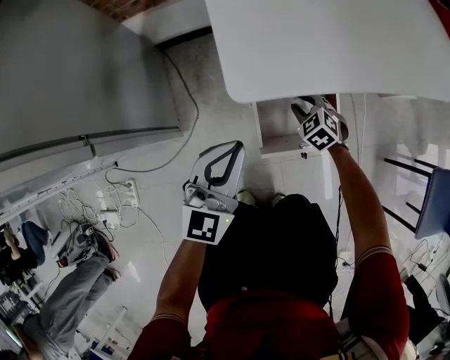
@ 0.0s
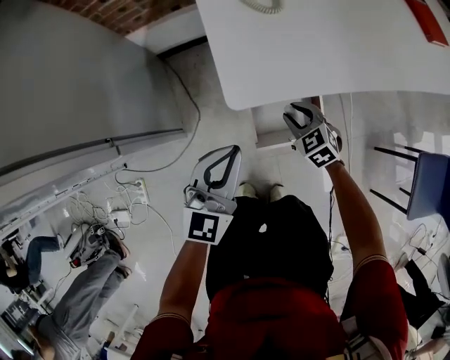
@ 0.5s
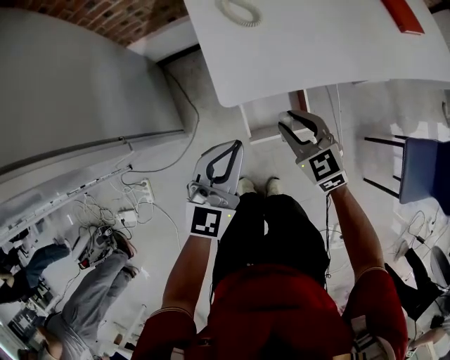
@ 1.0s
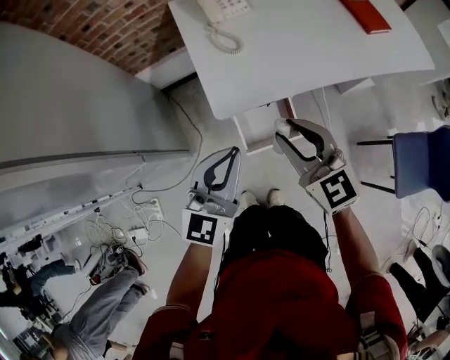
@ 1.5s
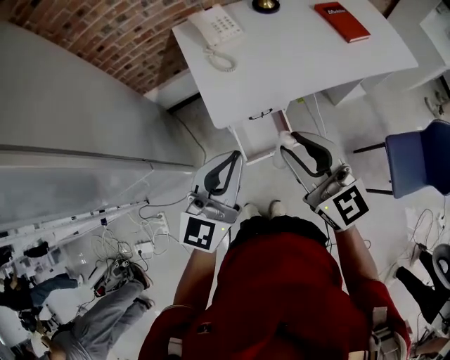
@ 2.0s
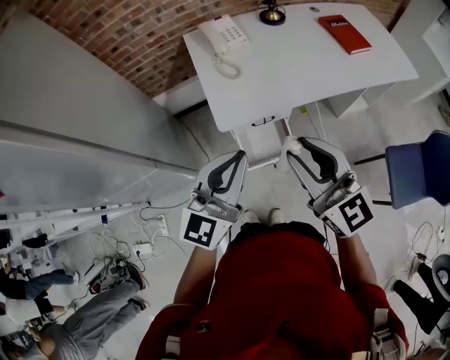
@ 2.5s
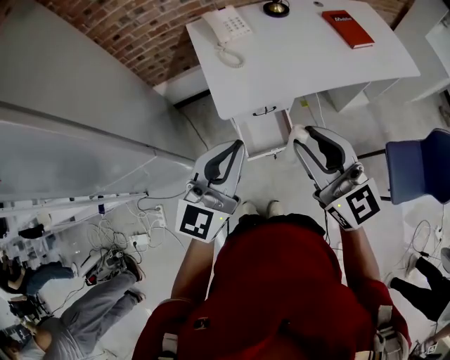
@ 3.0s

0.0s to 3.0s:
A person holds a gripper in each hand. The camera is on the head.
0.0s to 1.5s: The right gripper shifts roughly 50 cm upward, and angles its fingers upward, by approximately 40 degrees. The left gripper shifts roughly 30 cm upward.
1.5s to 3.0s: The two grippers go some 15 cm upward and backward.

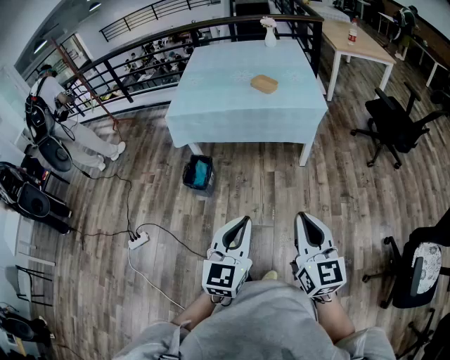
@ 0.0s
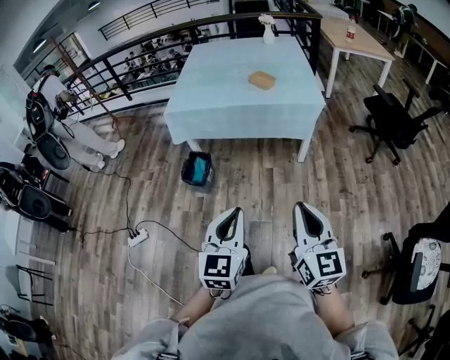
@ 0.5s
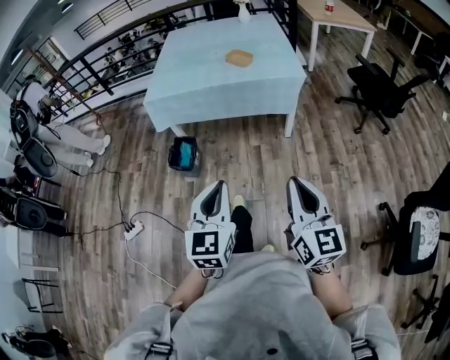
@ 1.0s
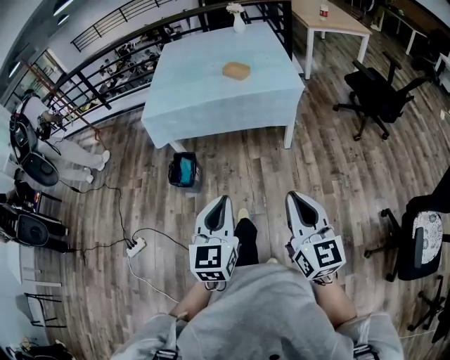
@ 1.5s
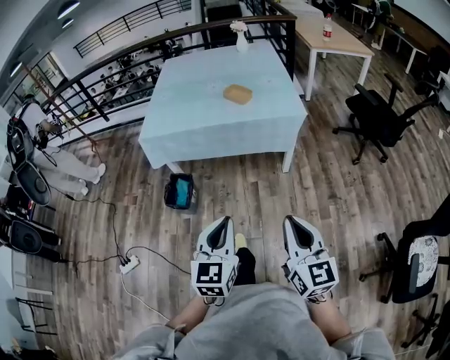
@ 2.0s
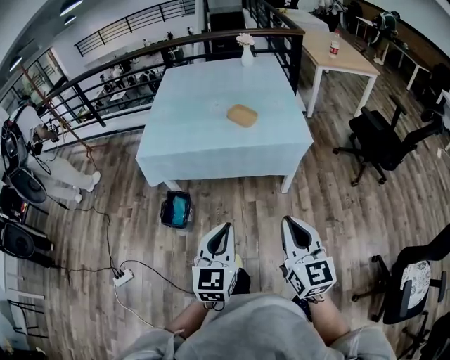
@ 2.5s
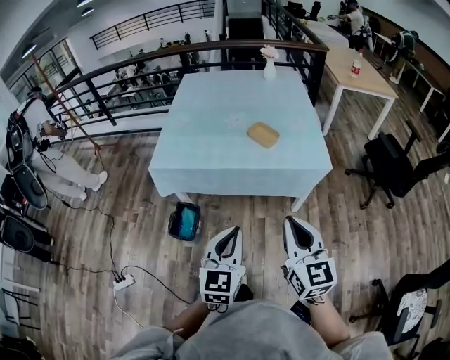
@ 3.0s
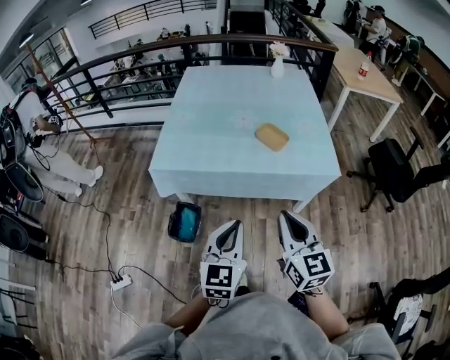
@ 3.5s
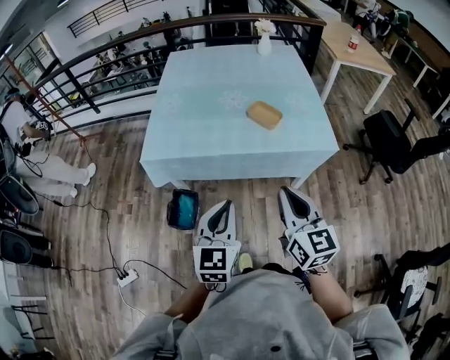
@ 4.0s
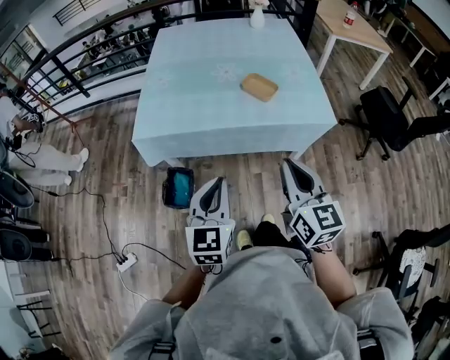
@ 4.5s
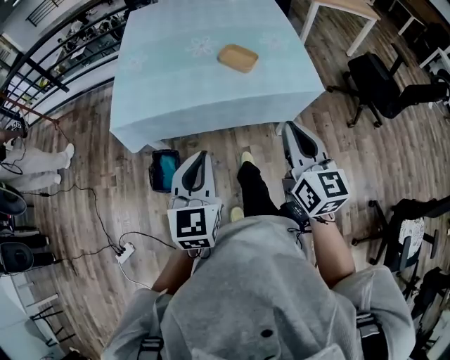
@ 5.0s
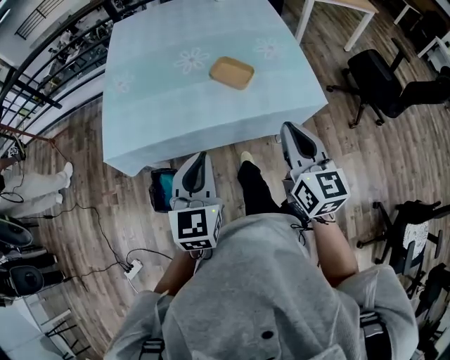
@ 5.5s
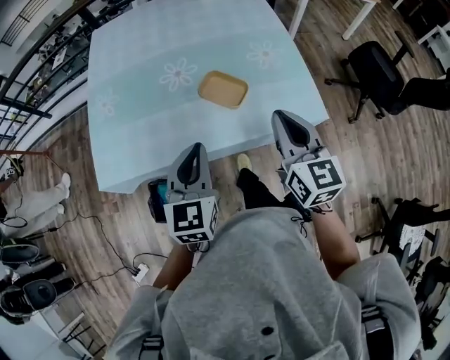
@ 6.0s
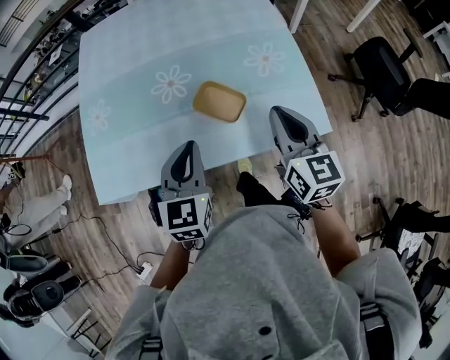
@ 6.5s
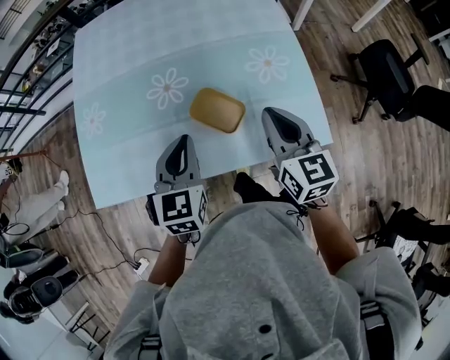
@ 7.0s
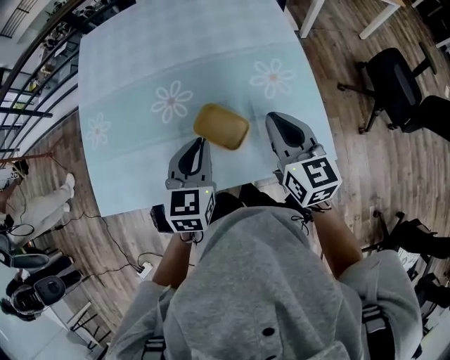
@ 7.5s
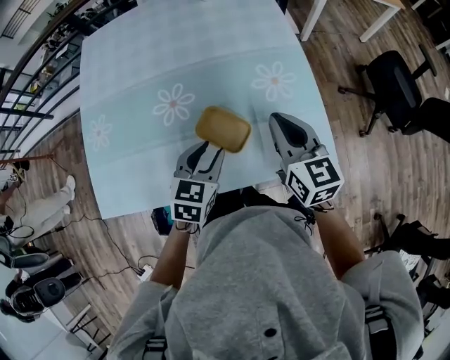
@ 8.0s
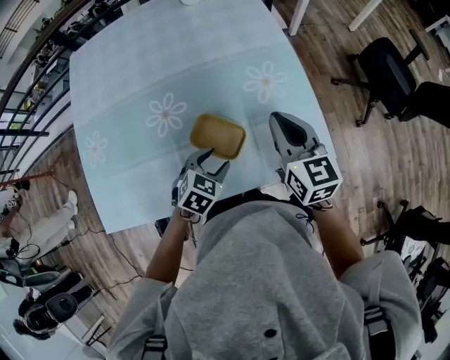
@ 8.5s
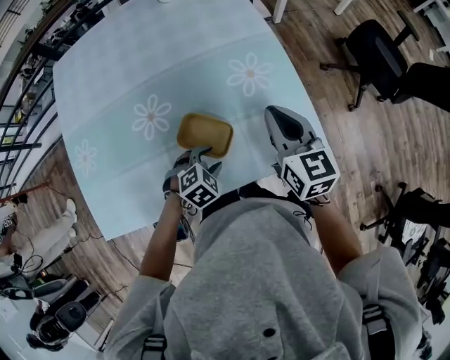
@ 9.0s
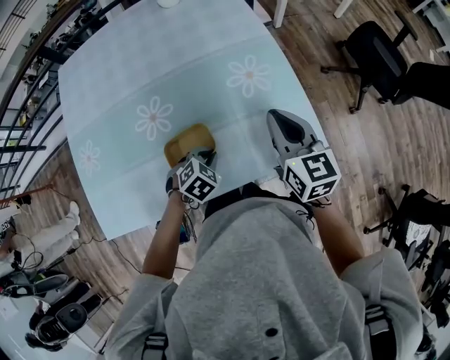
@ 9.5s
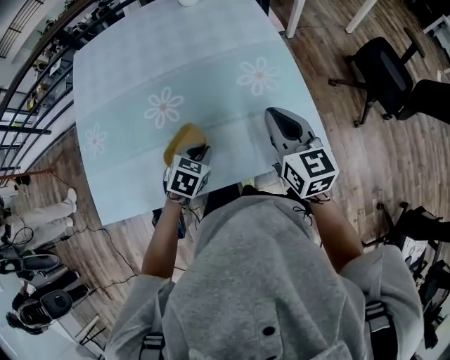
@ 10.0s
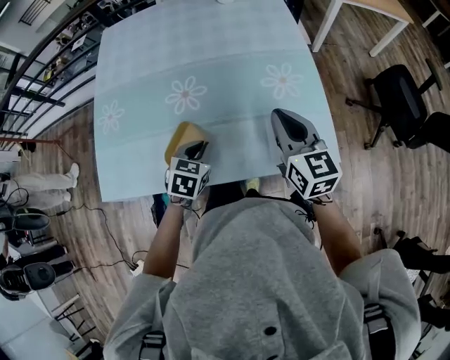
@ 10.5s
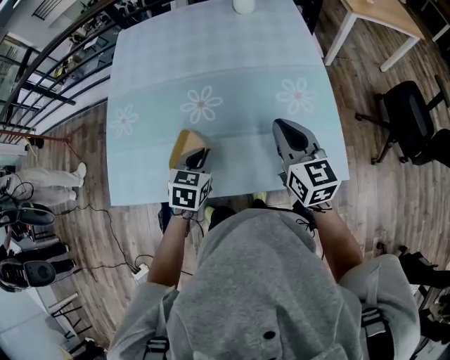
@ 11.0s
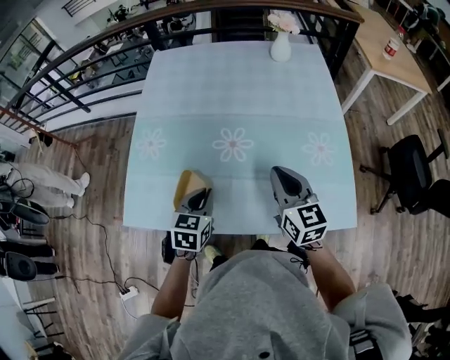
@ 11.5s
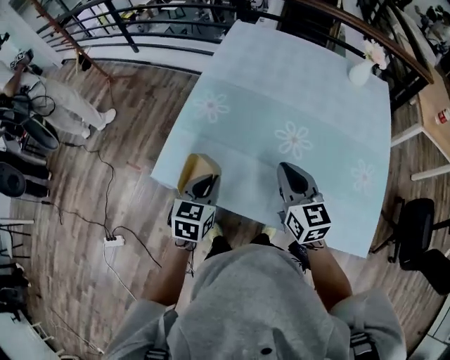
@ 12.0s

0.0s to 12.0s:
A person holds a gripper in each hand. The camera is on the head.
0.0s to 2.0s: The two grippers go some 10 cm forward.
2.0s to 4.0s: The left gripper is displaced forward by roughly 30 cm. Meanwhile the right gripper goes about 35 cm forward and to the left.
4.0s to 6.0s: The left gripper goes approximately 25 cm forward; the right gripper moves forward and to the right, roughly 30 cm.
6.0s to 8.0s: The left gripper moves forward, downward and to the right, approximately 20 cm, swivels roughly 30 degrees, and opens up. The right gripper heads forward, covering roughly 15 cm.
8.0s to 10.0s: The left gripper goes approximately 10 cm downward, rotates approximately 20 degrees, and closes its fingers.
10.0s to 12.0s: The right gripper shifts by approximately 35 cm, and rotates some 30 degrees, while the left gripper shifts by roughly 35 cm, and turns by approximately 50 degrees.

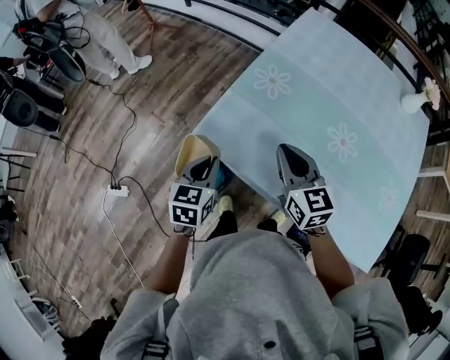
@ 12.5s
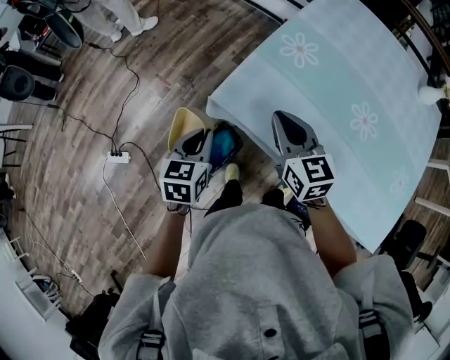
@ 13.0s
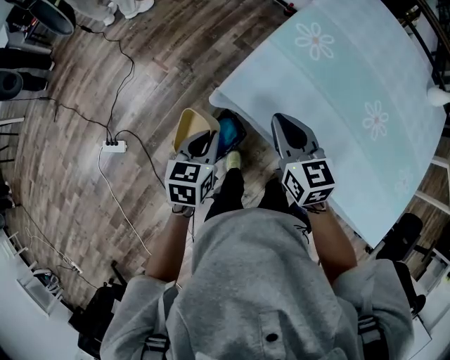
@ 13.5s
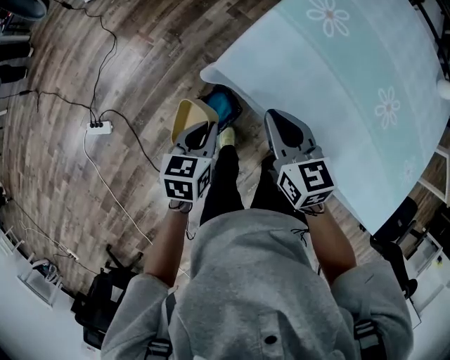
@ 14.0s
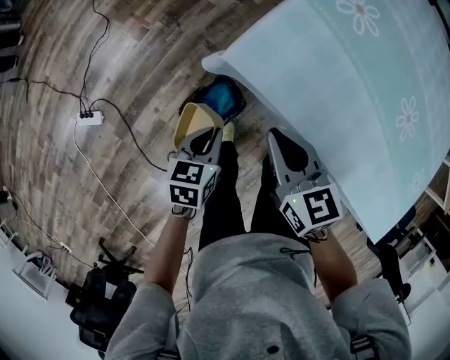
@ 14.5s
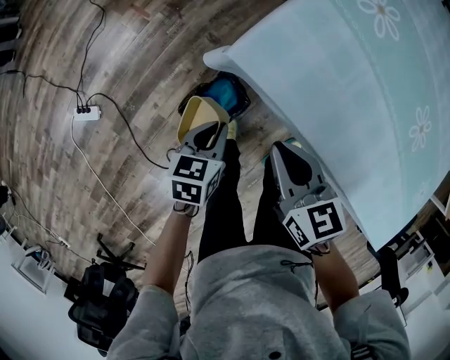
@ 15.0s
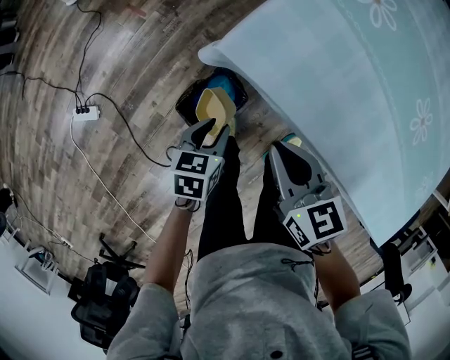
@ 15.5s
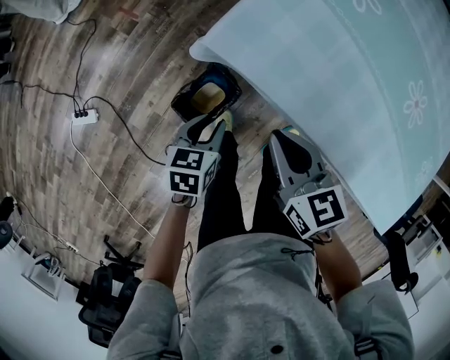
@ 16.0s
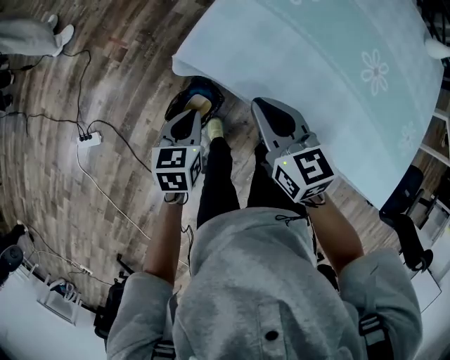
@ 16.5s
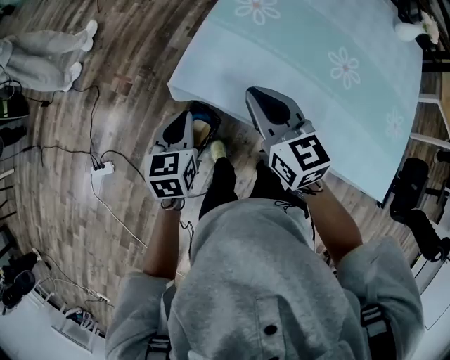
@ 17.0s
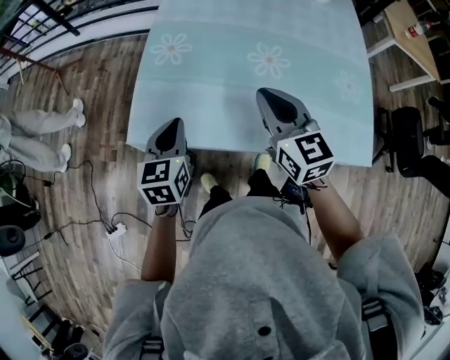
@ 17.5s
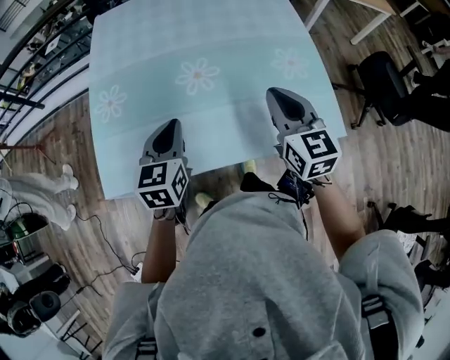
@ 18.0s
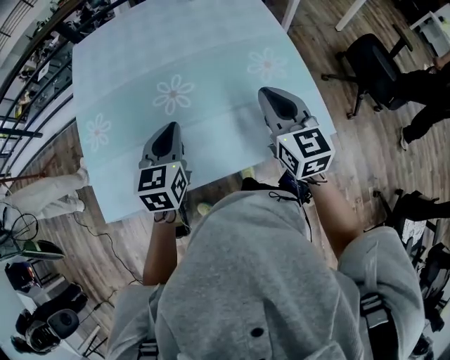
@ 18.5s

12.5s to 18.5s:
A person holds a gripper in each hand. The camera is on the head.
12.5s to 14.5s: The two grippers go about 25 cm downward and to the left. The left gripper turns by roughly 20 degrees; the right gripper changes its angle by some 20 degrees.
14.5s to 16.5s: Both grippers move upward, some 5 cm. The left gripper opens, then closes again.
16.5s to 18.5s: The pair of grippers is taken some 50 cm. The left gripper rotates some 50 degrees. Meanwhile the right gripper changes its angle by some 60 degrees.

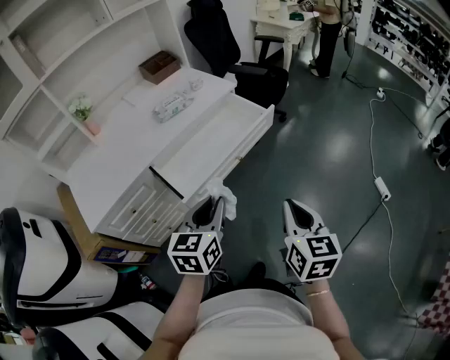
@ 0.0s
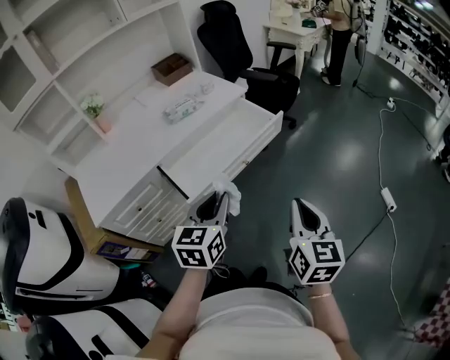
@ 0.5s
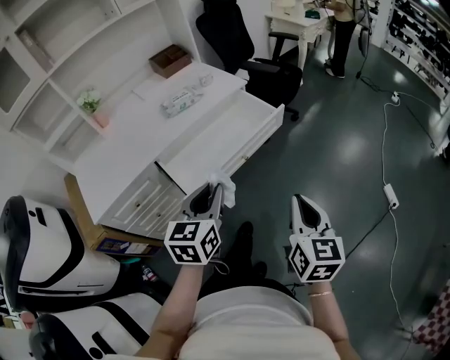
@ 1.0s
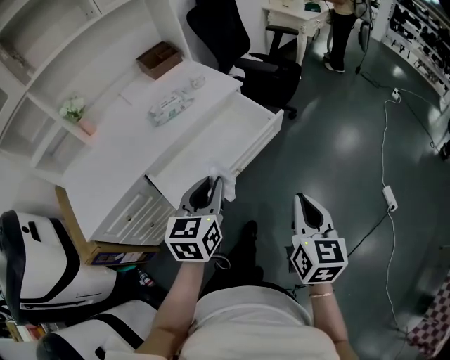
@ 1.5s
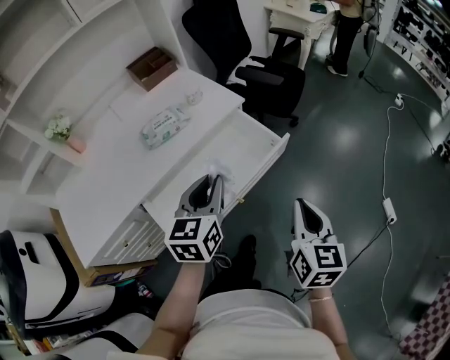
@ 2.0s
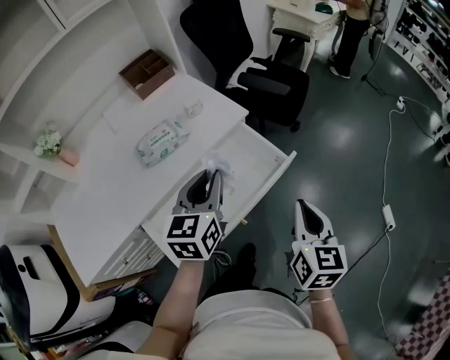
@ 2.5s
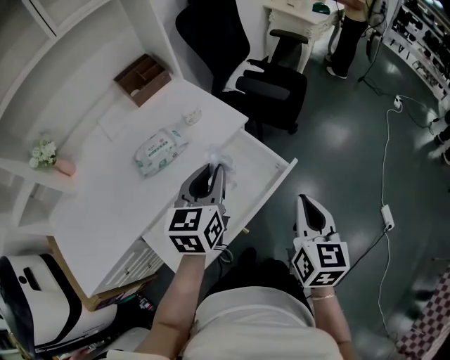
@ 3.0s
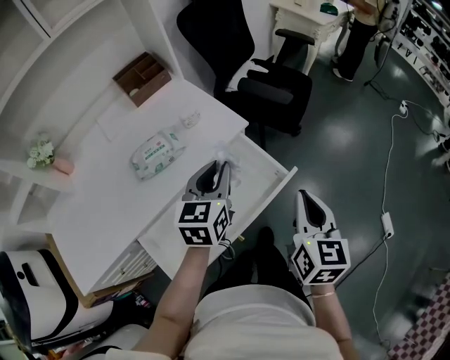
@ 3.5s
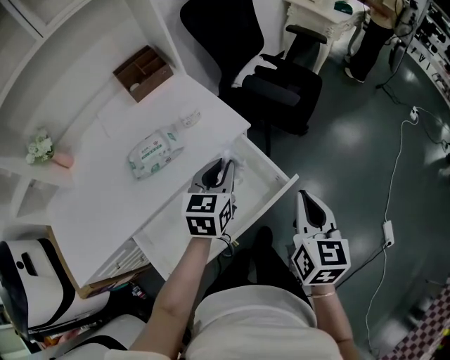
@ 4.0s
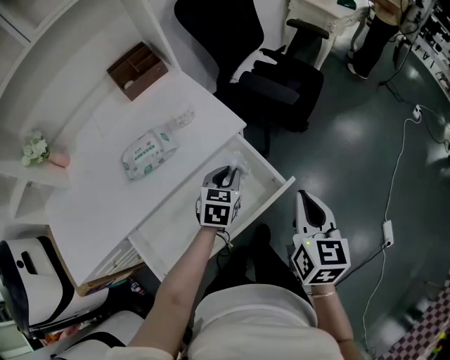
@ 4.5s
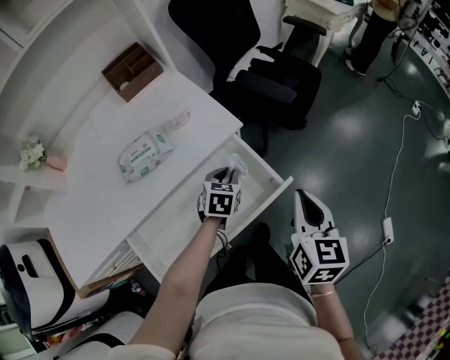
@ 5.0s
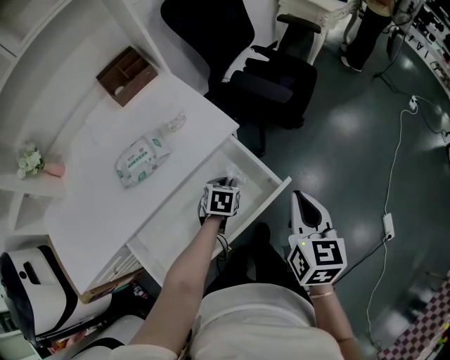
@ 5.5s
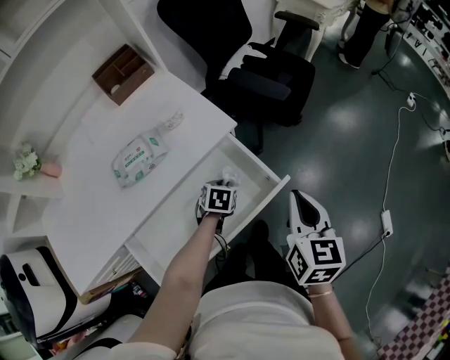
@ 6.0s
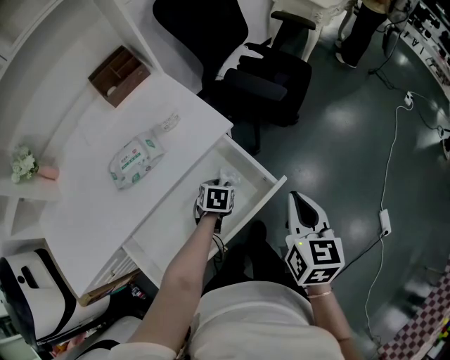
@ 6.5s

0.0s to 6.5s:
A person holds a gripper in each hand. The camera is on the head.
0.0s to 2.0s: Both grippers move forward, some 25 cm.
2.0s to 4.5s: The right gripper shifts approximately 25 cm forward; the left gripper moves forward and downward, approximately 30 cm, and swivels about 20 degrees.
4.5s to 6.5s: The left gripper shifts about 15 cm downward, and rotates roughly 20 degrees.
